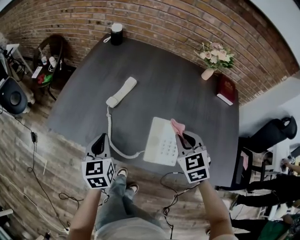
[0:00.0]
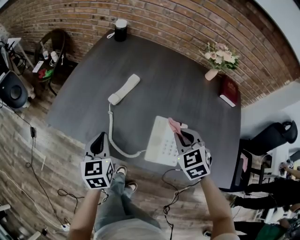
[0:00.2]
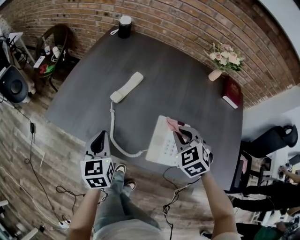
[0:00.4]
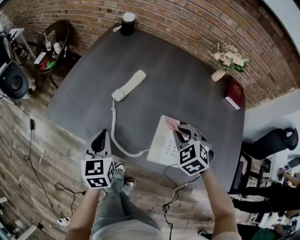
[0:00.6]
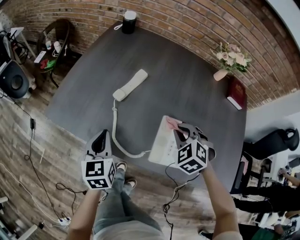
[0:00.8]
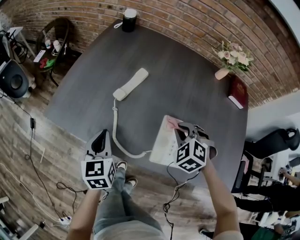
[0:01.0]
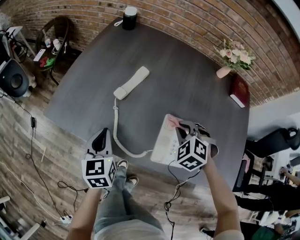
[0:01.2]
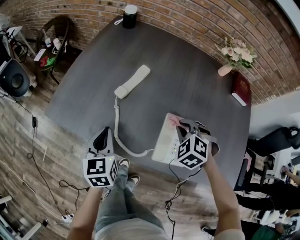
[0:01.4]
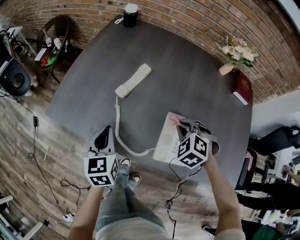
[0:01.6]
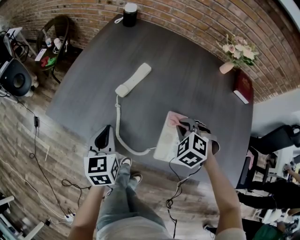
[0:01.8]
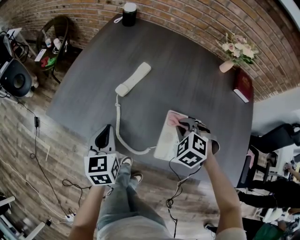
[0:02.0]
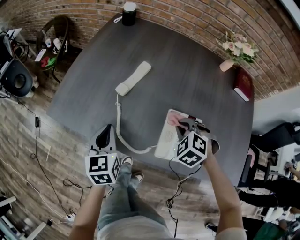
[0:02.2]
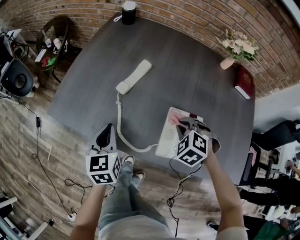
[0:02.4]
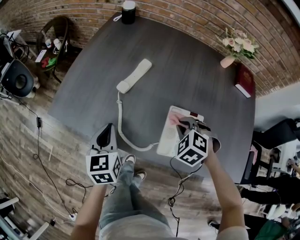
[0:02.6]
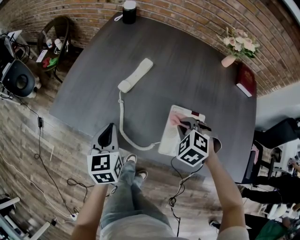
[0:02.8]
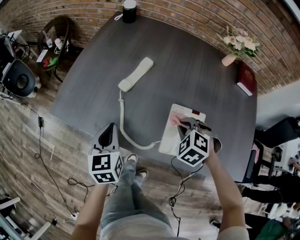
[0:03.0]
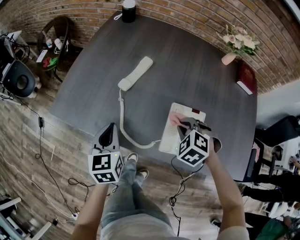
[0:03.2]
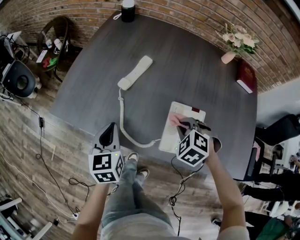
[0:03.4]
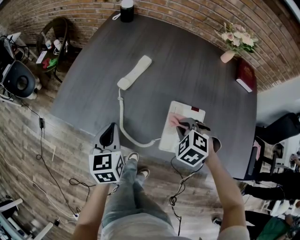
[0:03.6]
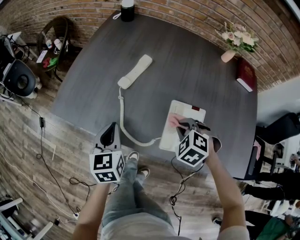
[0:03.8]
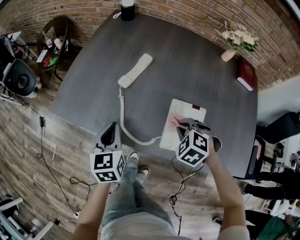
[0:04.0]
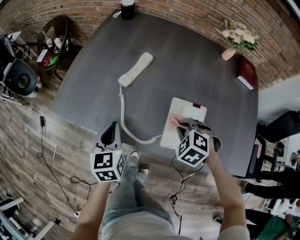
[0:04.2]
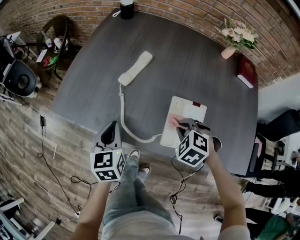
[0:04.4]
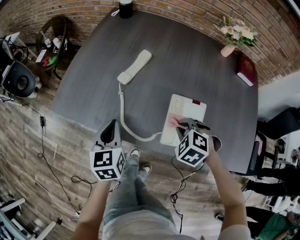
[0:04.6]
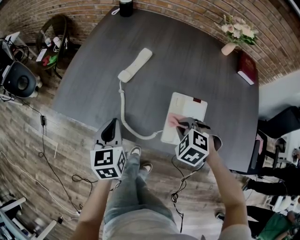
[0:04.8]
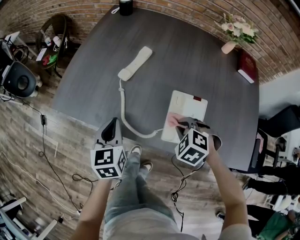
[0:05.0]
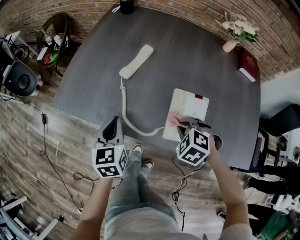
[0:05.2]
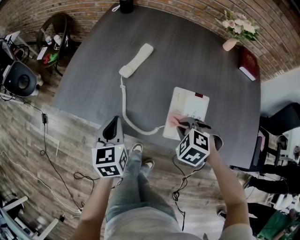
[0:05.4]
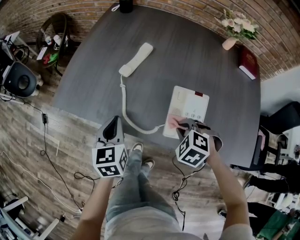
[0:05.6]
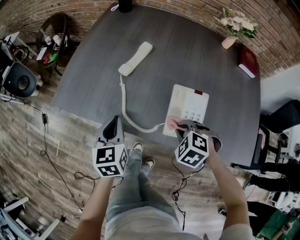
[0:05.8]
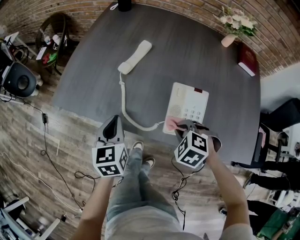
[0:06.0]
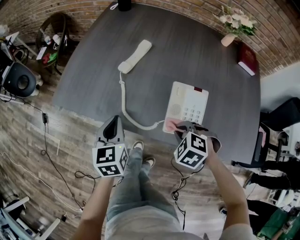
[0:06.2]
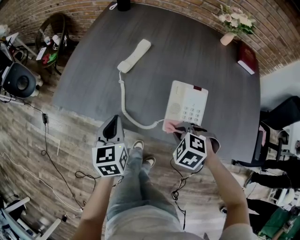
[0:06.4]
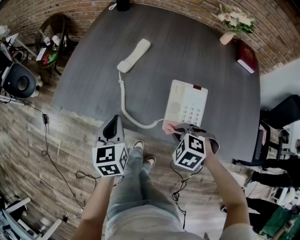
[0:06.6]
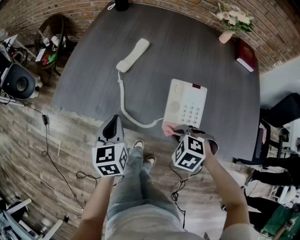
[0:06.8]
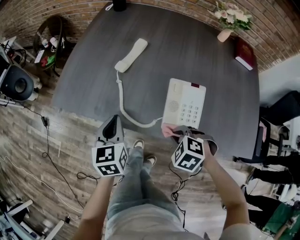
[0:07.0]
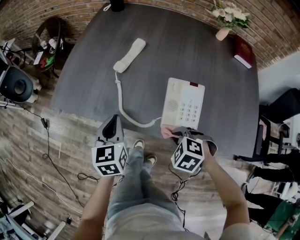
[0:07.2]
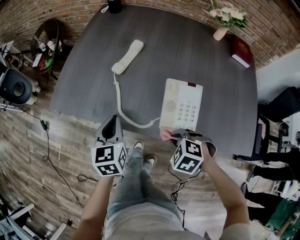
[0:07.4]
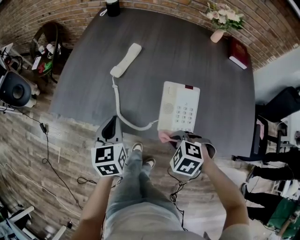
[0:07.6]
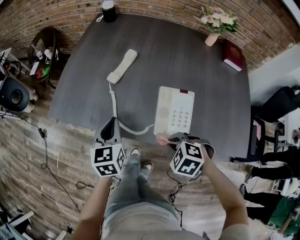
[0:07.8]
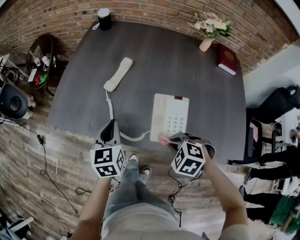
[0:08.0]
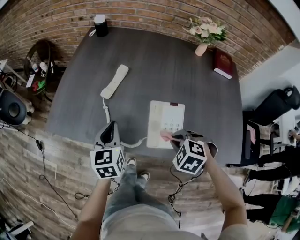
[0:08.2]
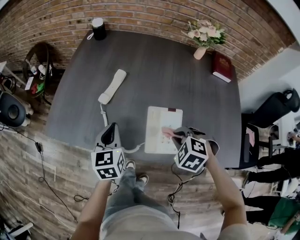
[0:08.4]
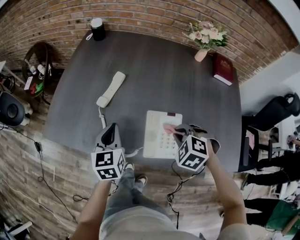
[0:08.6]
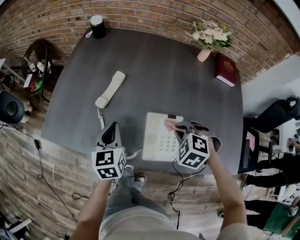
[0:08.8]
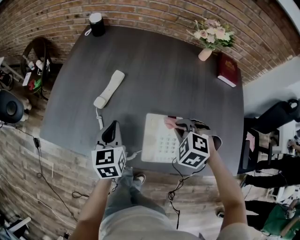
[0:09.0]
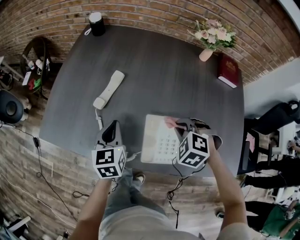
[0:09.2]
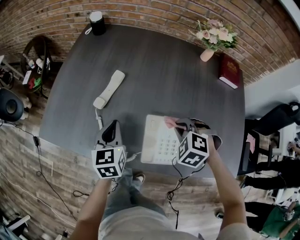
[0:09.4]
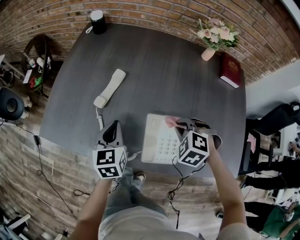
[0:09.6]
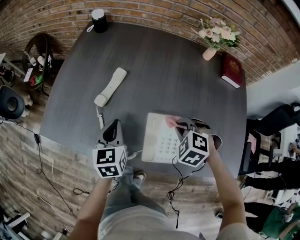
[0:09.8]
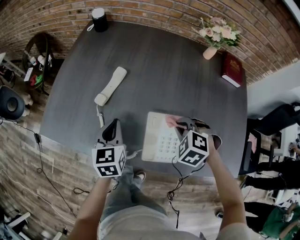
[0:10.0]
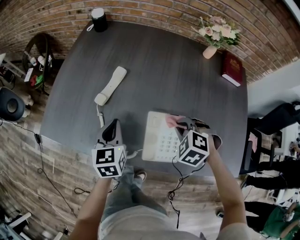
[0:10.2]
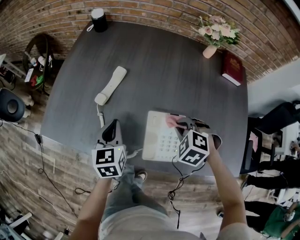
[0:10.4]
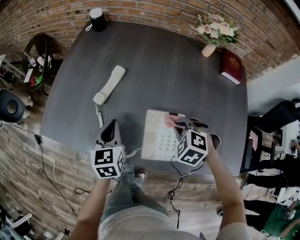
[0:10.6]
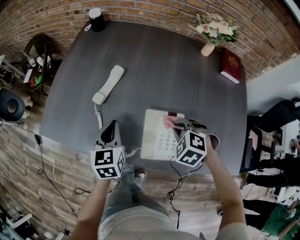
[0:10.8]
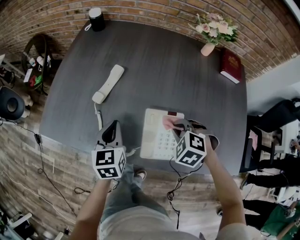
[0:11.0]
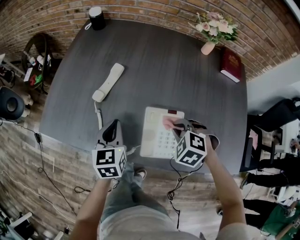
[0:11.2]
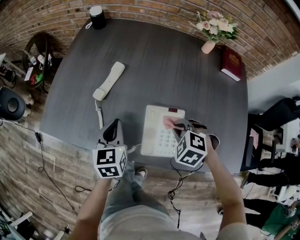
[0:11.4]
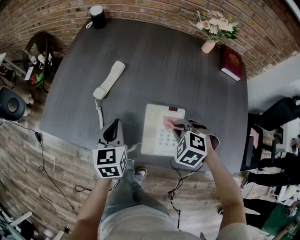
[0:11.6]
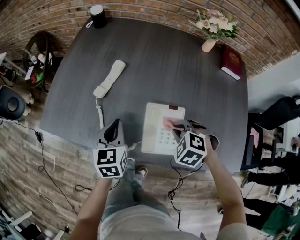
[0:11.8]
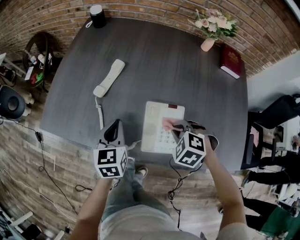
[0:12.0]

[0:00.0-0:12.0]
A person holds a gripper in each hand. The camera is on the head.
0:00.0 to 0:01.6: The right gripper is displaced downward by approximately 10 cm, and changes its angle by some 40 degrees.
0:01.6 to 0:03.0: The grippers move only a little.
0:03.0 to 0:04.4: The grippers move only a little.
0:04.4 to 0:06.0: The right gripper moves backward, approximately 5 cm.
0:06.0 to 0:07.6: The right gripper changes place by approximately 5 cm.
0:07.6 to 0:09.0: The right gripper shifts by approximately 20 cm. The left gripper moves some 15 cm.
0:09.0 to 0:10.4: There are only small adjustments of the grippers.
0:10.4 to 0:12.0: The right gripper changes place by some 5 cm.

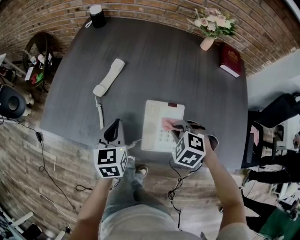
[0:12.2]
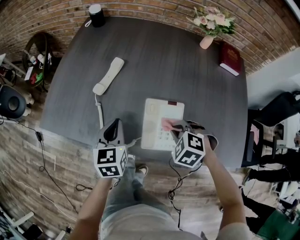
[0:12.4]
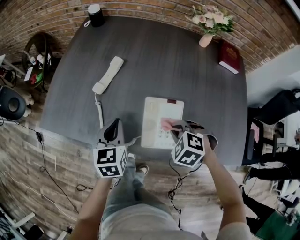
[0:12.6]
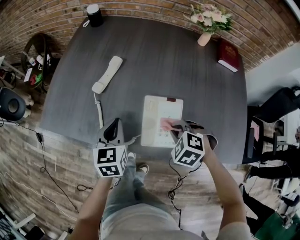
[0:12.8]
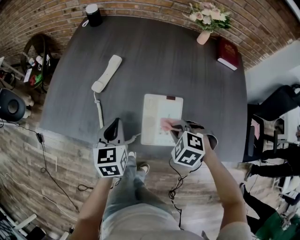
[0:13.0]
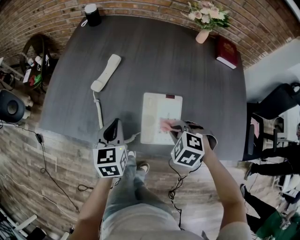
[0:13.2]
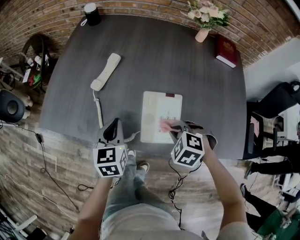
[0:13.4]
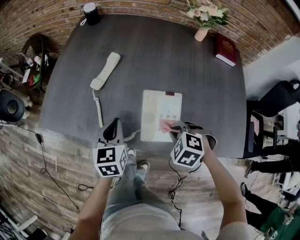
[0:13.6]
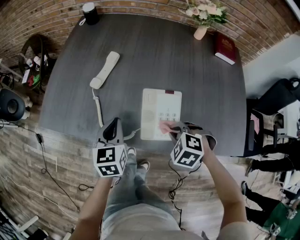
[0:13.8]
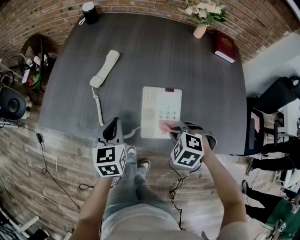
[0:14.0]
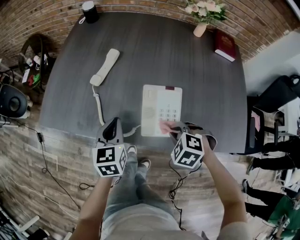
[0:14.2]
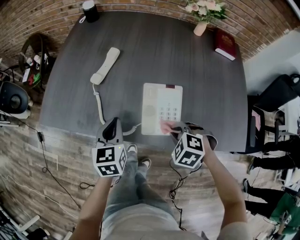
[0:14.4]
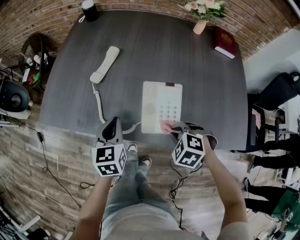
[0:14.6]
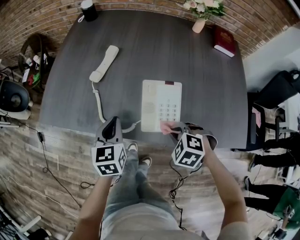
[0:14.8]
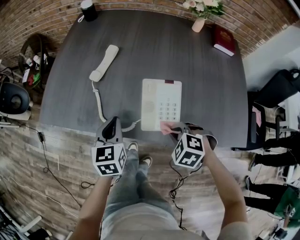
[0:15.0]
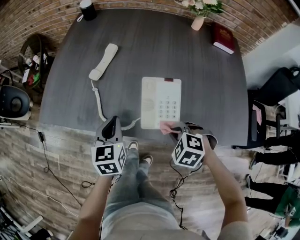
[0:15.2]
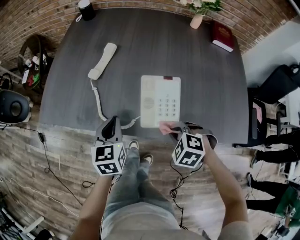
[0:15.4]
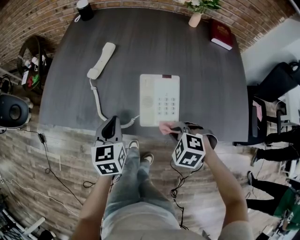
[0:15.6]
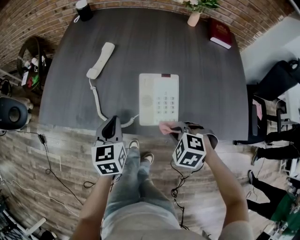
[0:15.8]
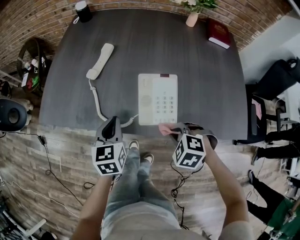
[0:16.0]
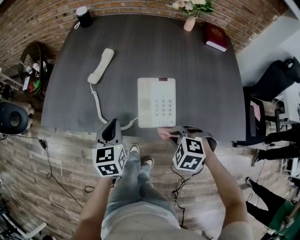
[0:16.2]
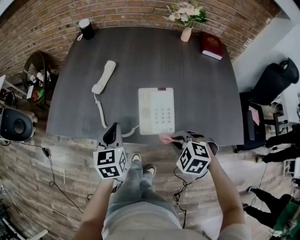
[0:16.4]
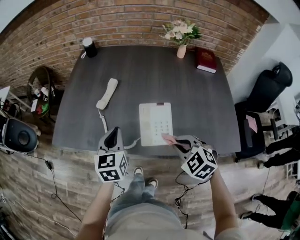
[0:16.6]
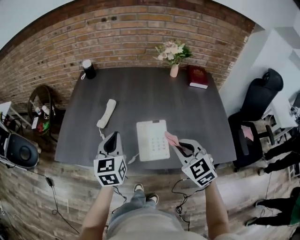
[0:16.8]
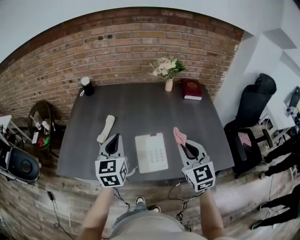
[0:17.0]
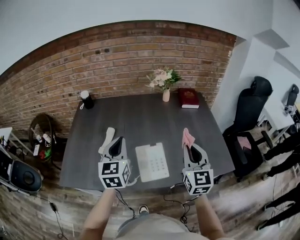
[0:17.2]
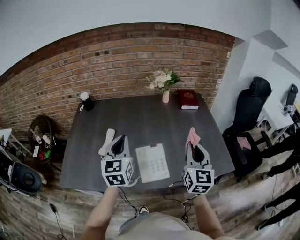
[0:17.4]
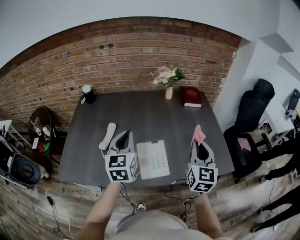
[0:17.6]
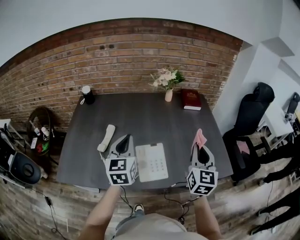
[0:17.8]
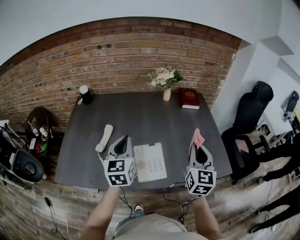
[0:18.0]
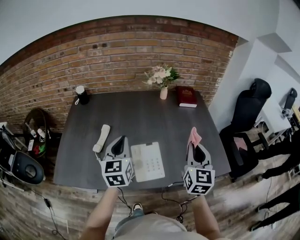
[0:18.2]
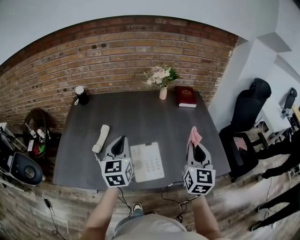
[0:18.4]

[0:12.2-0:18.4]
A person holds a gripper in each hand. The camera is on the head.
0:12.2 to 0:13.8: The right gripper is displaced backward by roughly 5 cm.
0:13.8 to 0:15.4: The right gripper moves backward, some 5 cm.
0:15.4 to 0:16.8: Both grippers move upward, some 20 cm. The right gripper tips its fingers upward by roughly 40 degrees.
0:16.8 to 0:18.4: The right gripper heads to the right, upward and forward, covering roughly 15 cm, and swivels roughly 50 degrees. The left gripper goes roughly 10 cm forward, to the right and upward.

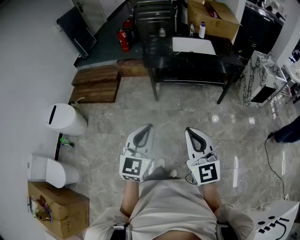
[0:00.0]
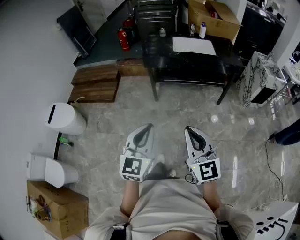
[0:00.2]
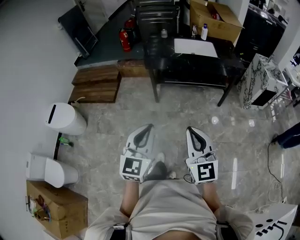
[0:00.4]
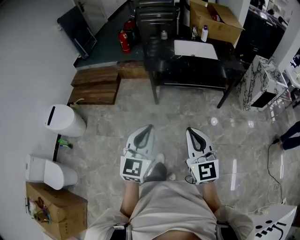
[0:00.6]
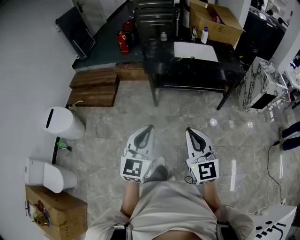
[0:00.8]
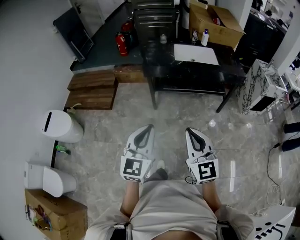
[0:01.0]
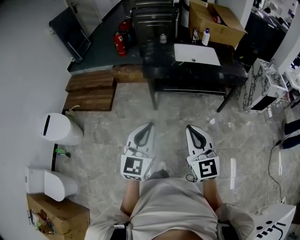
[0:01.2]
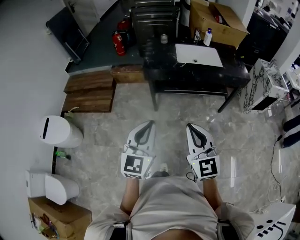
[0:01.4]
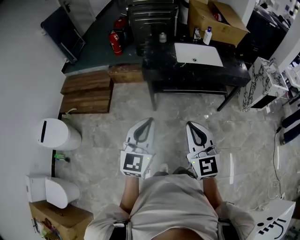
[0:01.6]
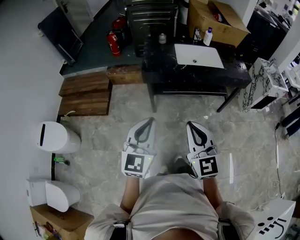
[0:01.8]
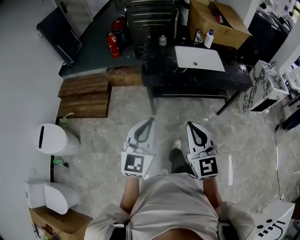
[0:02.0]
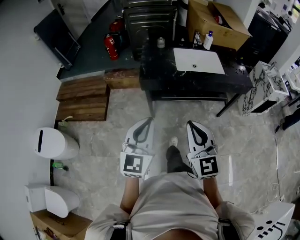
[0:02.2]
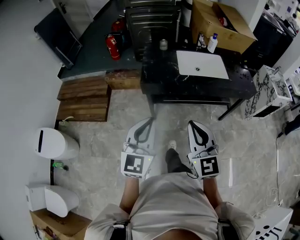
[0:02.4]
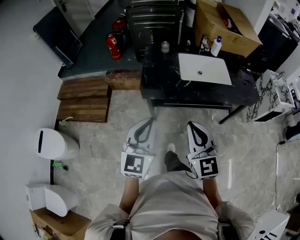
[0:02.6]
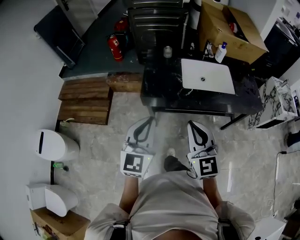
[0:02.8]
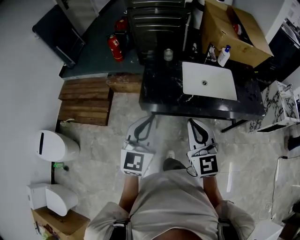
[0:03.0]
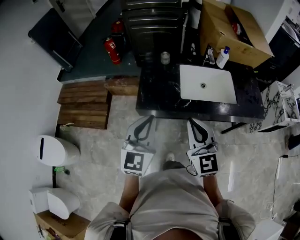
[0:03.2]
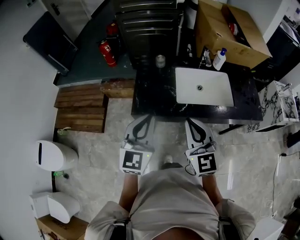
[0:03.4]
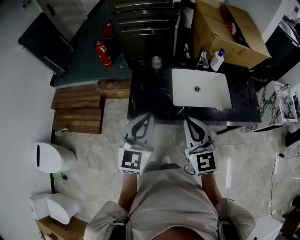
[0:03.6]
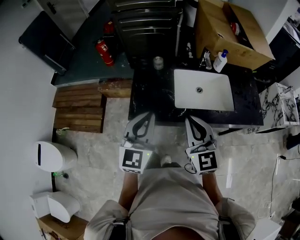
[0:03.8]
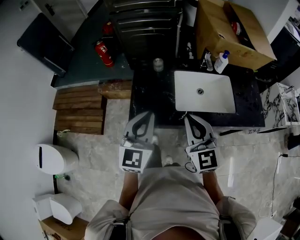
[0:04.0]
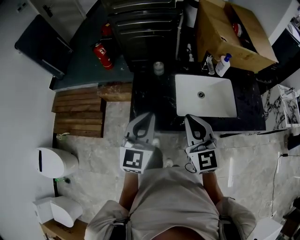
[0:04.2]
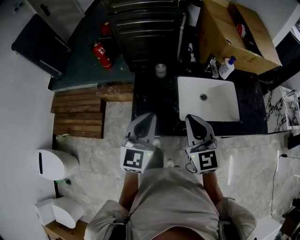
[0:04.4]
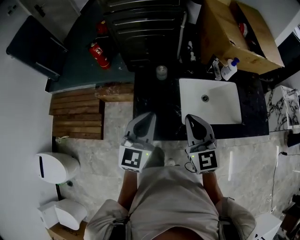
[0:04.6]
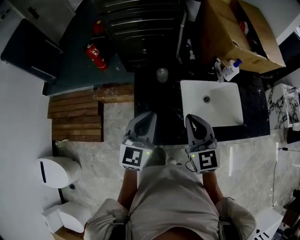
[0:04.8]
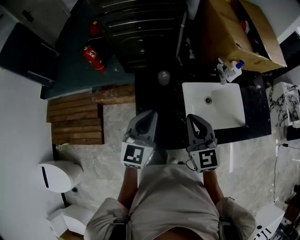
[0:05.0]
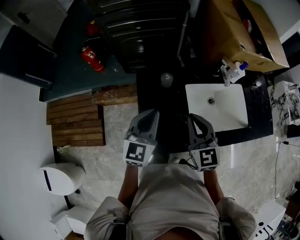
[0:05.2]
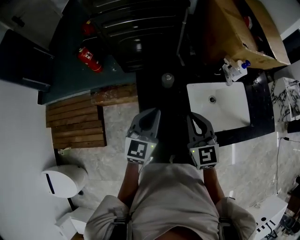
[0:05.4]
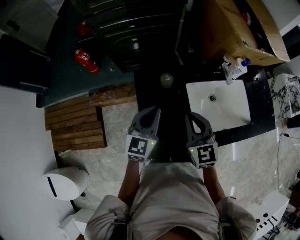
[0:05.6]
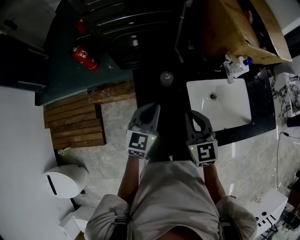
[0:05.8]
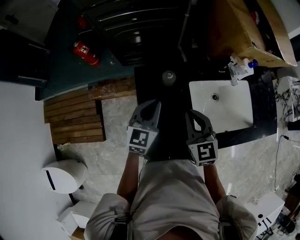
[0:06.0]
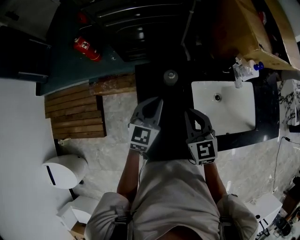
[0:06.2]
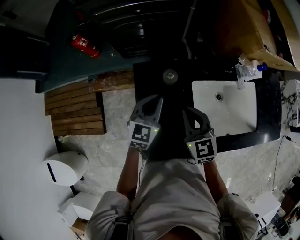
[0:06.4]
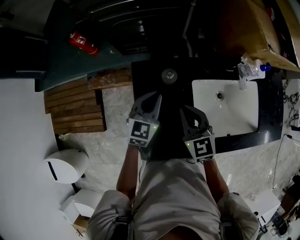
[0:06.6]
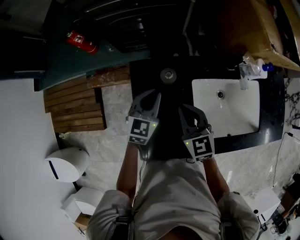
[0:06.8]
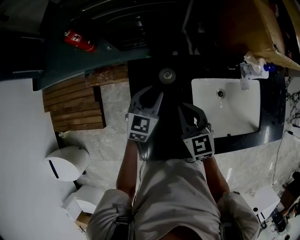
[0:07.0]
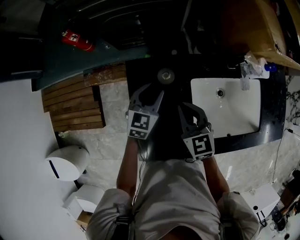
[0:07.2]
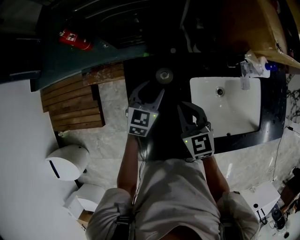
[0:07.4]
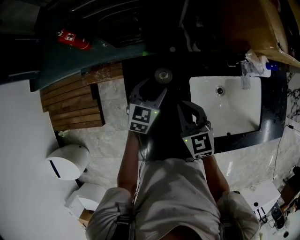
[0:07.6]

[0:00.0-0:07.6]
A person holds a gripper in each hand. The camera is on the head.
0:00.0 to 0:01.6: The two grippers go some 25 cm forward.
0:01.6 to 0:03.0: The two grippers go about 30 cm forward.
0:03.0 to 0:04.6: Both grippers move forward, some 25 cm.
0:04.6 to 0:06.0: The right gripper travels forward, downward and to the left by roughly 15 cm. The left gripper shifts roughly 20 cm forward and downward.
0:06.0 to 0:07.6: Both grippers travel together downward and forward, approximately 15 cm. The left gripper opens up.
